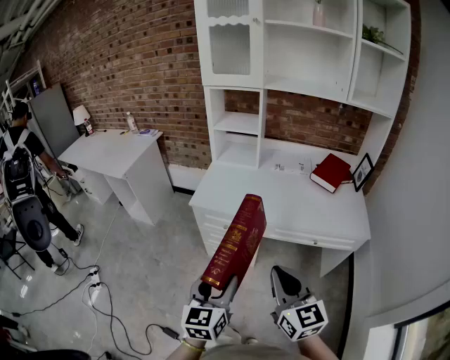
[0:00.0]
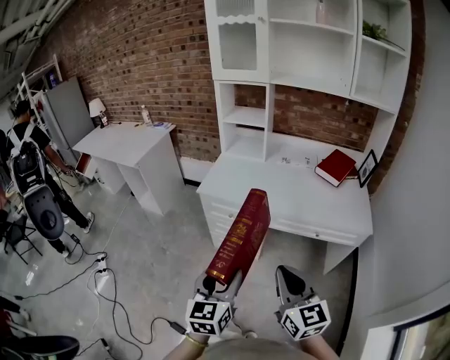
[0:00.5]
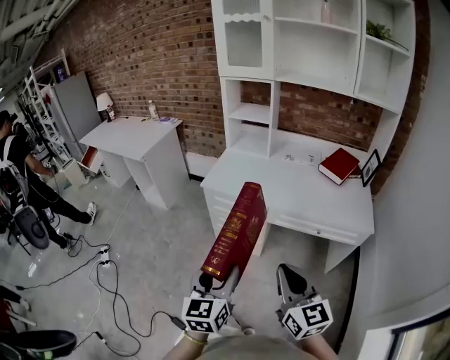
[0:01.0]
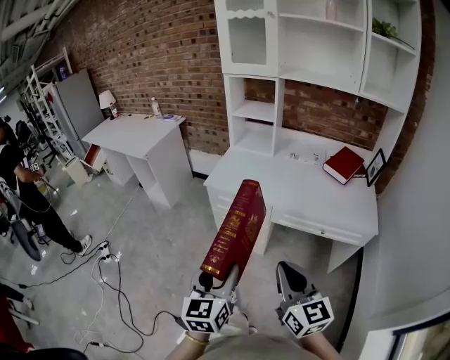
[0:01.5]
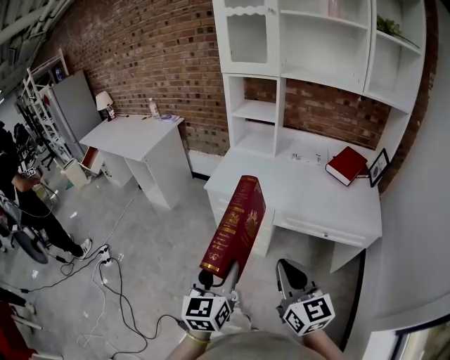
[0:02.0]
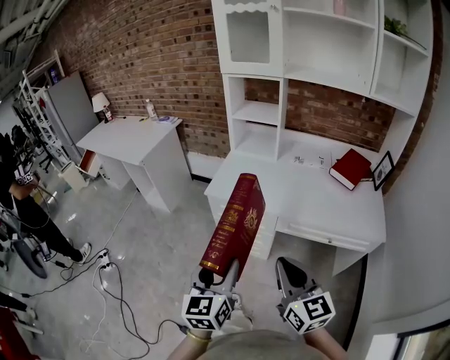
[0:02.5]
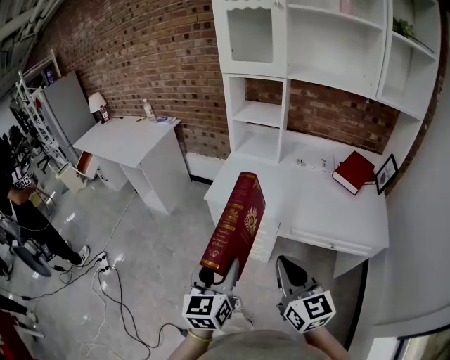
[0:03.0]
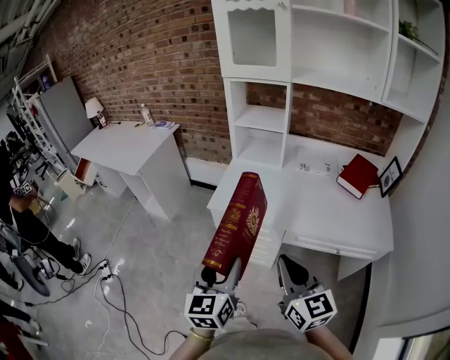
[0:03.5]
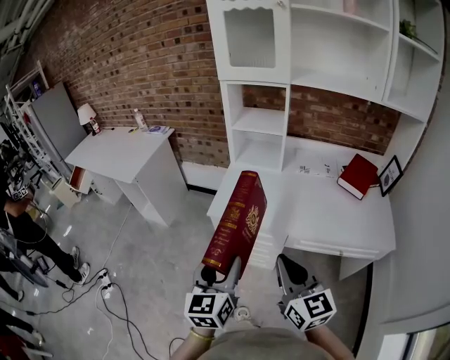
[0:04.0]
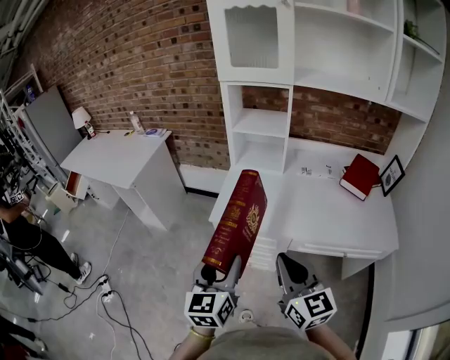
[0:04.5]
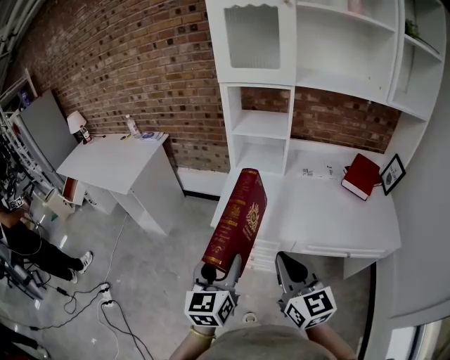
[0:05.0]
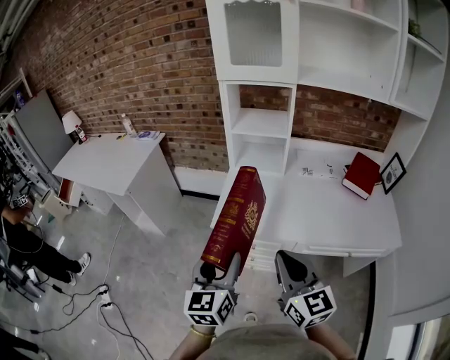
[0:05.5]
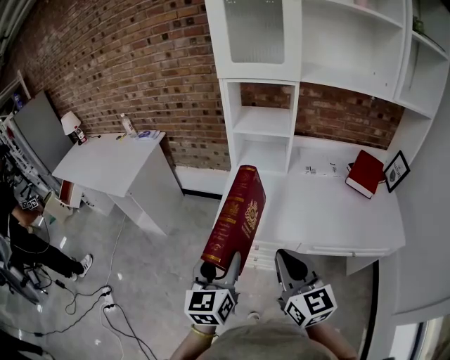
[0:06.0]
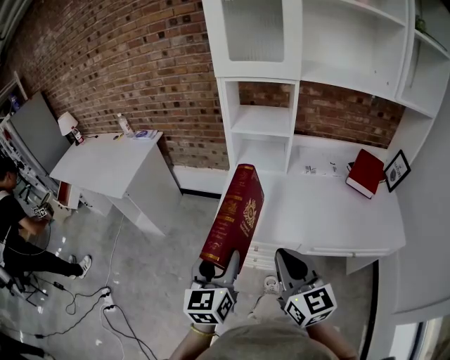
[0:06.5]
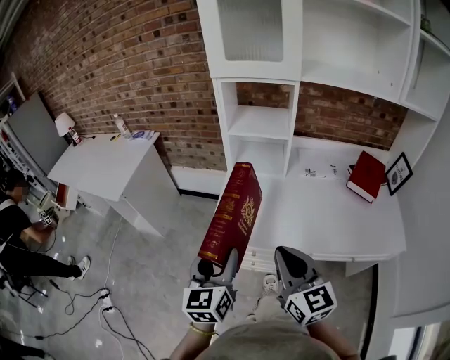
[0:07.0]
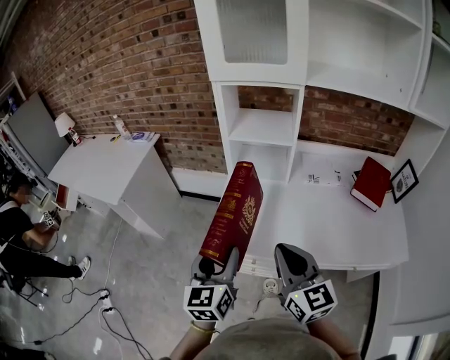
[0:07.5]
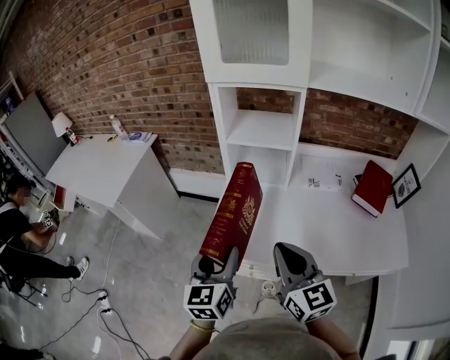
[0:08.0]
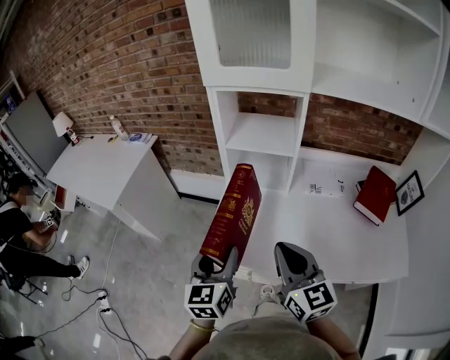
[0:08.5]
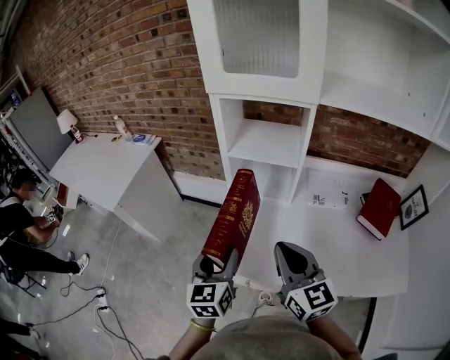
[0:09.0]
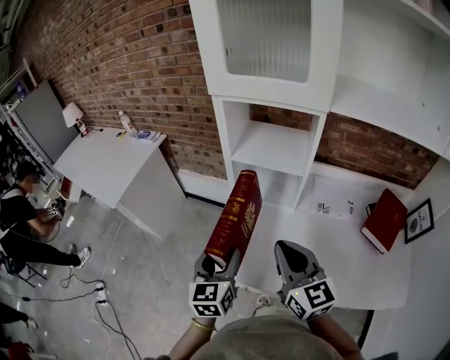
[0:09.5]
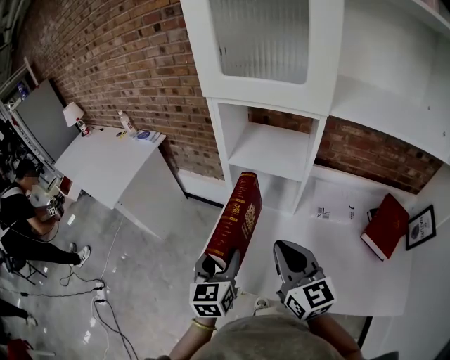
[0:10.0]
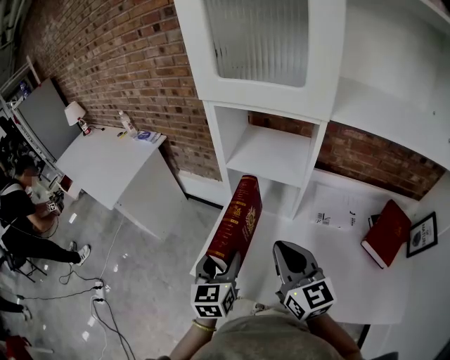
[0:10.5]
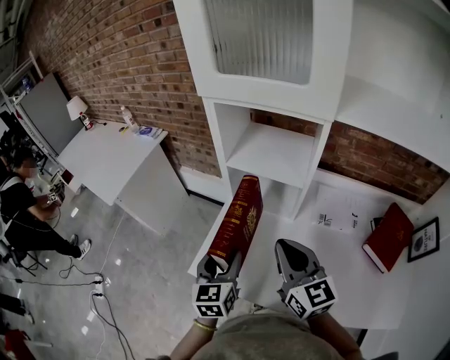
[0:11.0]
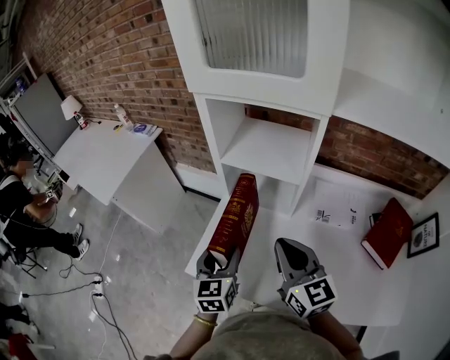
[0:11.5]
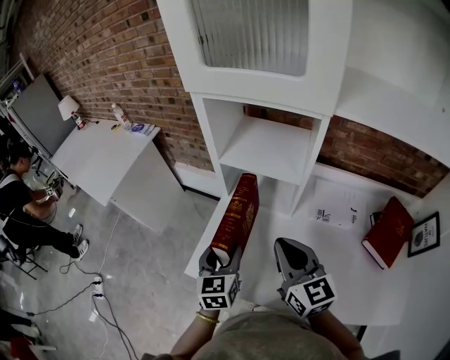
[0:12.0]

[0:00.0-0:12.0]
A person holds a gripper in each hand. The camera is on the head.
0:02.0 to 0:04.0: The grippers both shift forward by some 20 cm.
0:04.0 to 0:06.0: The right gripper heads forward and to the left, covering about 10 cm. The left gripper is displaced forward by roughly 10 cm.
0:06.0 to 0:08.0: Both grippers travel together forward, some 15 cm.
0:08.0 to 0:10.0: Both grippers travel together forward and to the right, approximately 15 cm.
0:10.0 to 0:12.0: The right gripper moves some 5 cm, while the left gripper travels downward by some 5 cm.

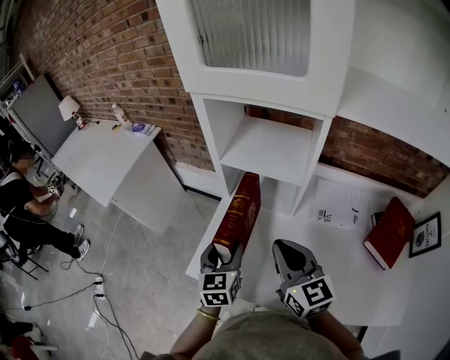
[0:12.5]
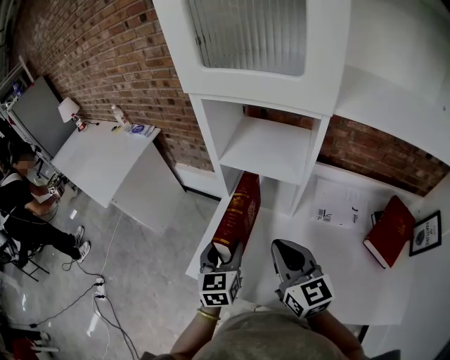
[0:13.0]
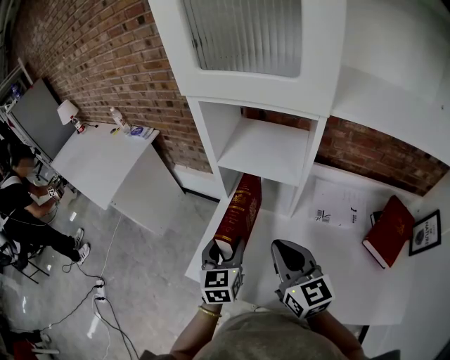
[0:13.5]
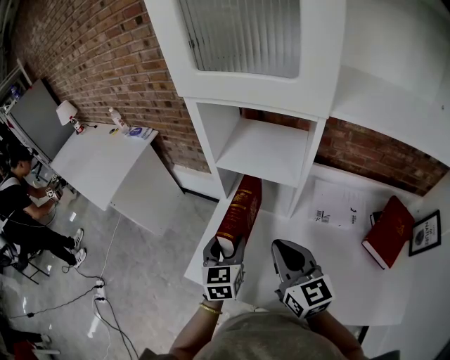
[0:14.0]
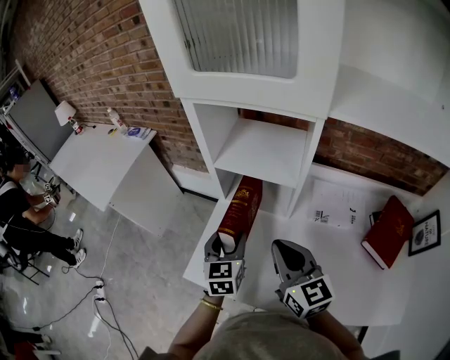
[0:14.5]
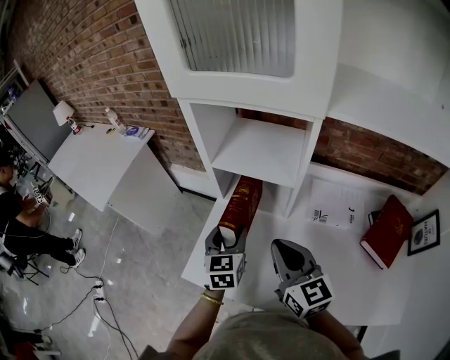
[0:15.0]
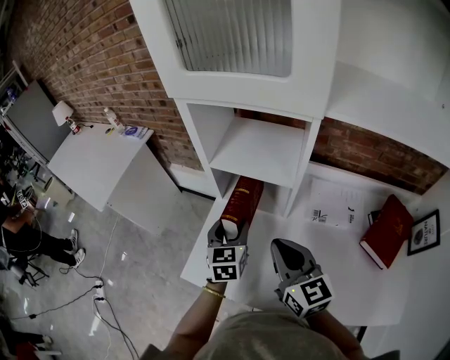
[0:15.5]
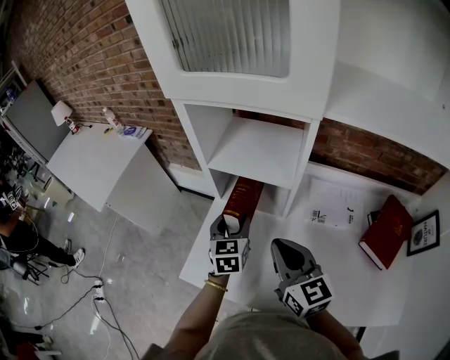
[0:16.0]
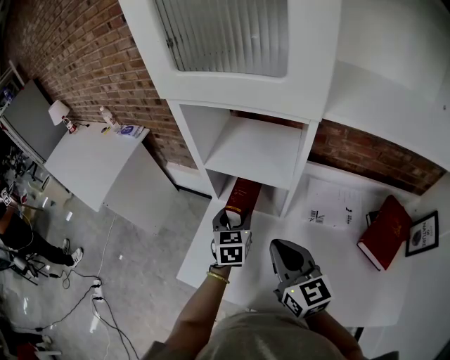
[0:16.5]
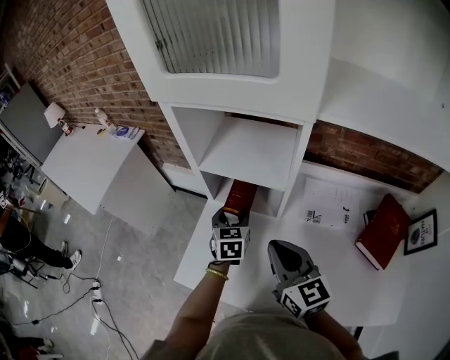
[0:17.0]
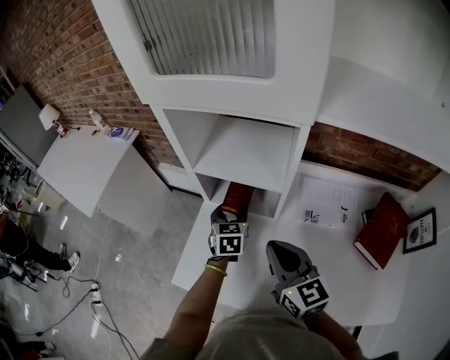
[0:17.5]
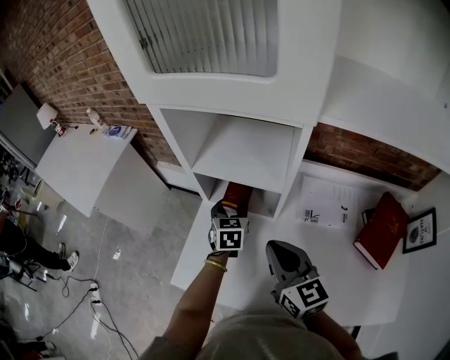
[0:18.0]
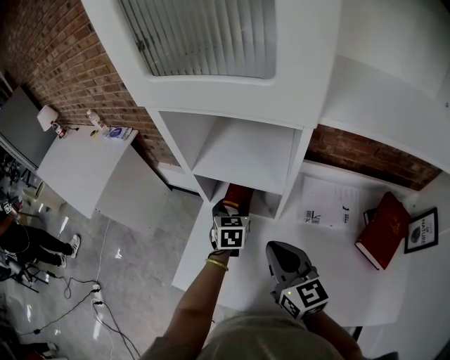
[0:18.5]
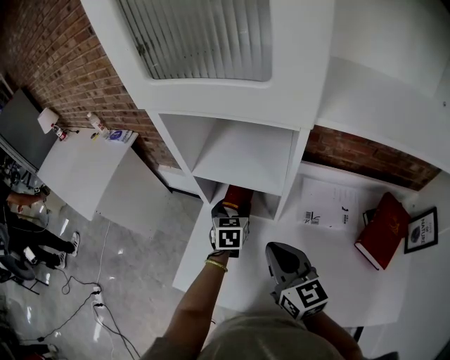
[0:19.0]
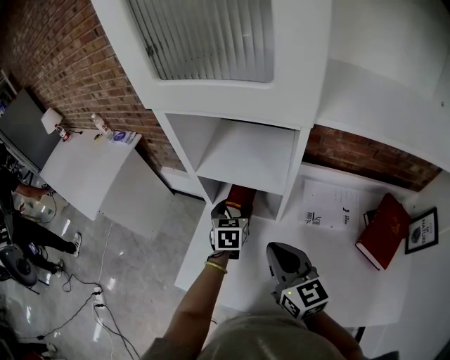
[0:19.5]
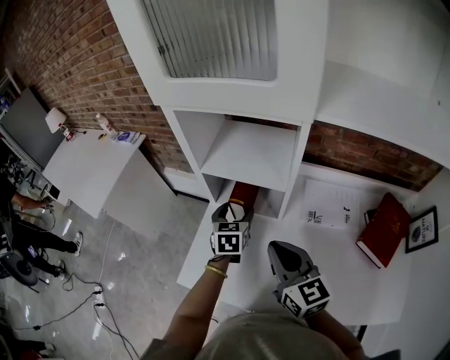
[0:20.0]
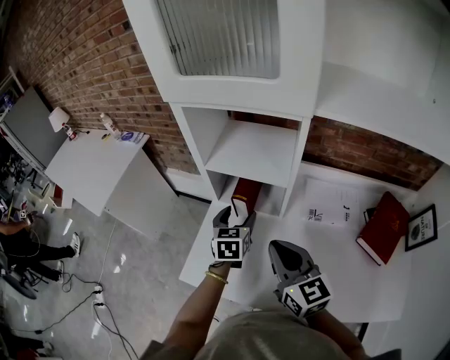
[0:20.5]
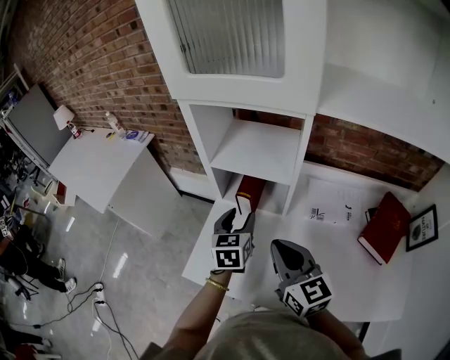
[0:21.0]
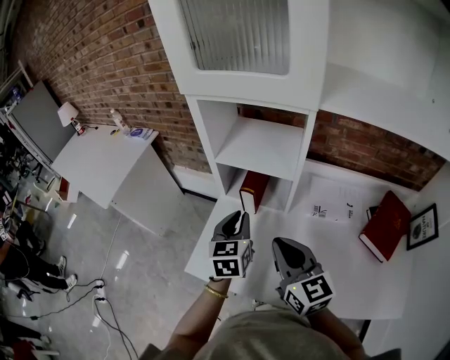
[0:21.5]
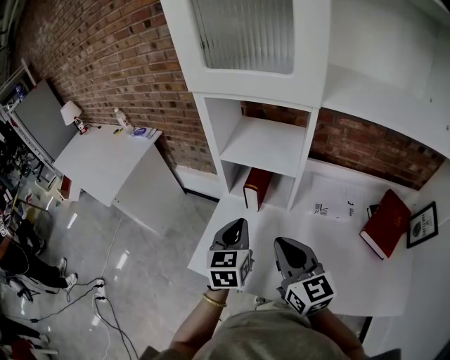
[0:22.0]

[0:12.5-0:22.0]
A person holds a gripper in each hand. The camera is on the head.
0:12.5 to 0:14.5: The grippers move only a little.
0:14.5 to 0:16.5: The left gripper moves forward and to the right, roughly 10 cm.
0:16.5 to 0:18.0: The left gripper ends up roughly 5 cm from where it was.
0:18.0 to 0:20.0: There are only small adjustments of the grippers.
0:20.0 to 0:22.0: The left gripper heads backward and upward, covering roughly 15 cm, and closes, while the right gripper heads backward, covering roughly 5 cm.

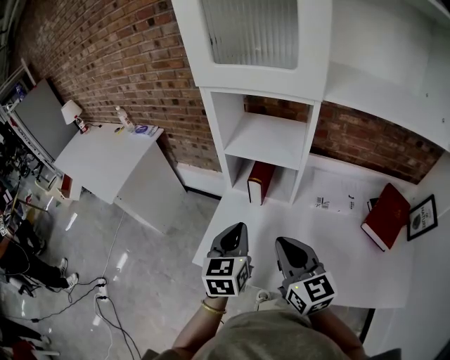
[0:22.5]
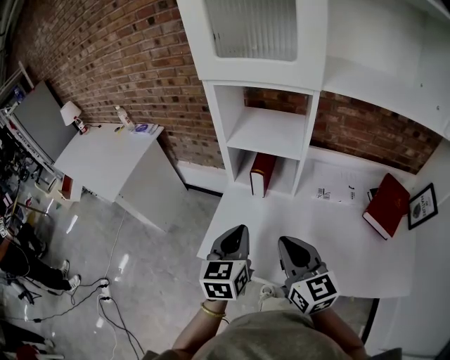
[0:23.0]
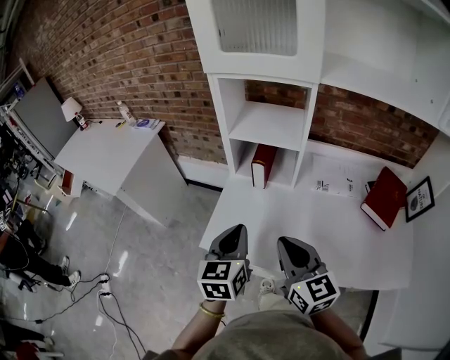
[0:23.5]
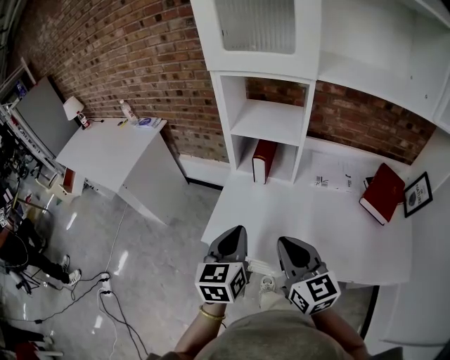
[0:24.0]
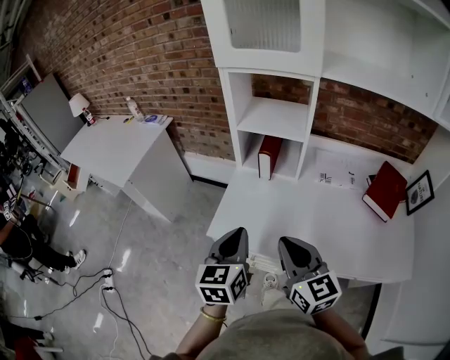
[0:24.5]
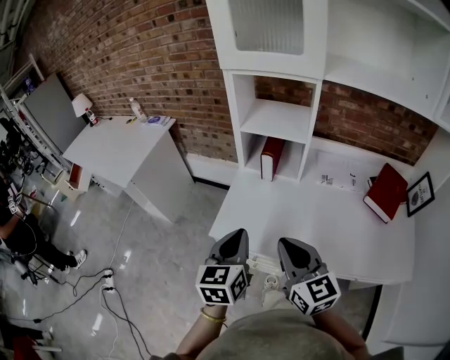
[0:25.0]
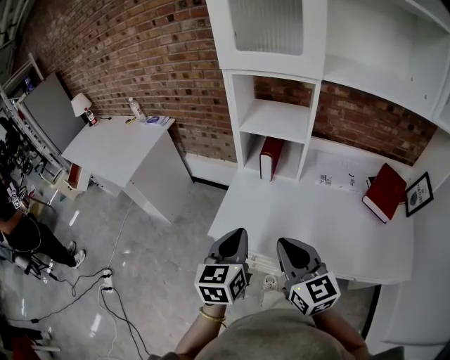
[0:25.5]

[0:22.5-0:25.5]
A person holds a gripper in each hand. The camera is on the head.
0:22.5 to 0:24.0: Both grippers move backward, about 10 cm.
0:24.0 to 0:25.5: The grippers move only a little.

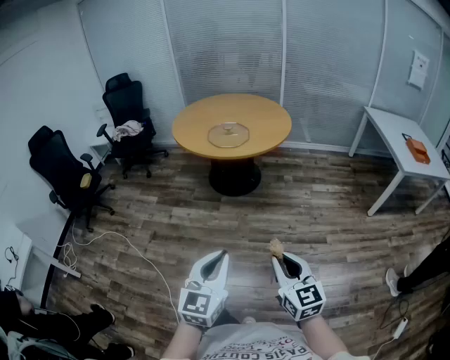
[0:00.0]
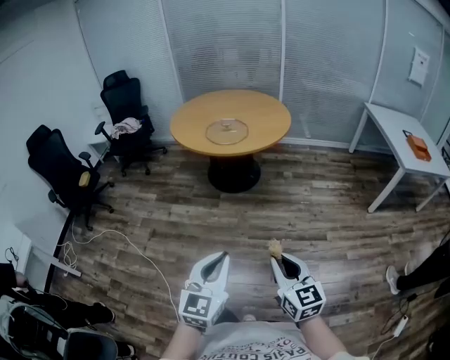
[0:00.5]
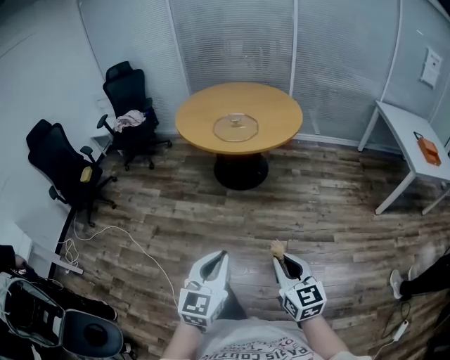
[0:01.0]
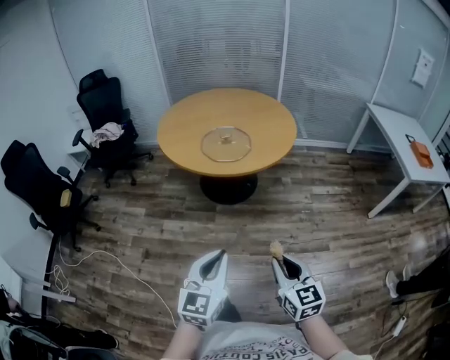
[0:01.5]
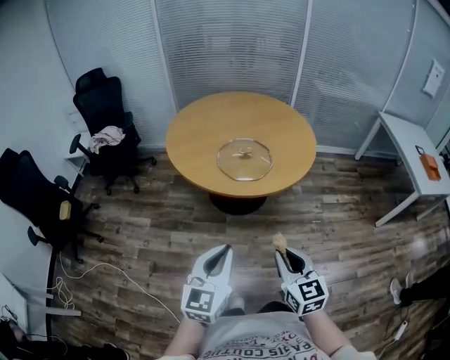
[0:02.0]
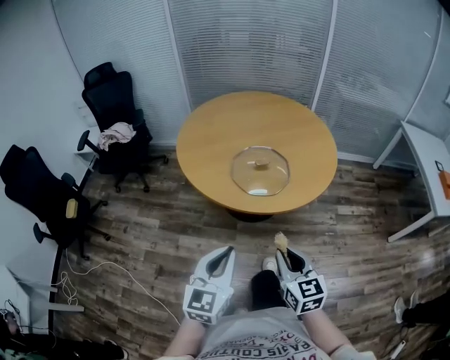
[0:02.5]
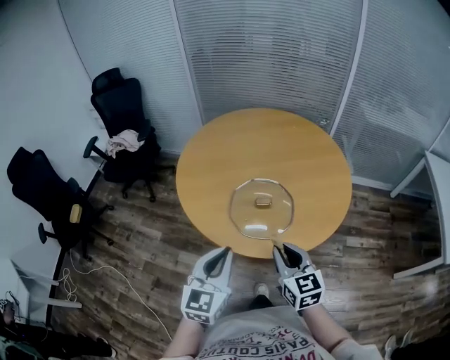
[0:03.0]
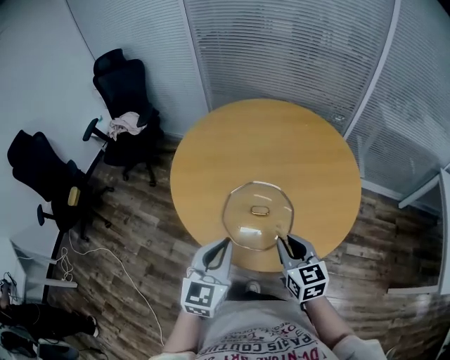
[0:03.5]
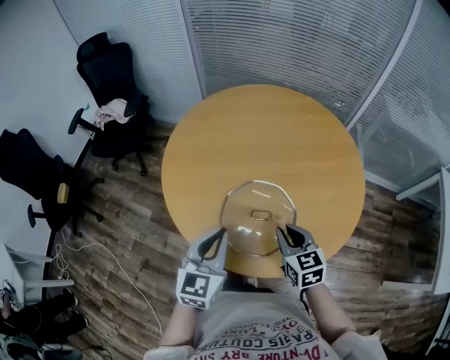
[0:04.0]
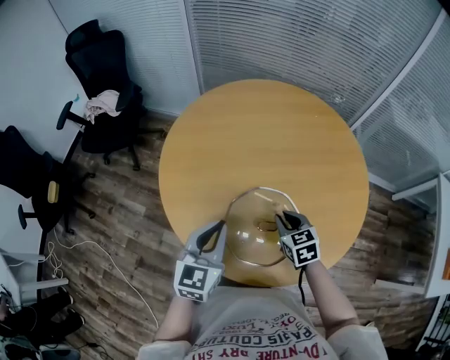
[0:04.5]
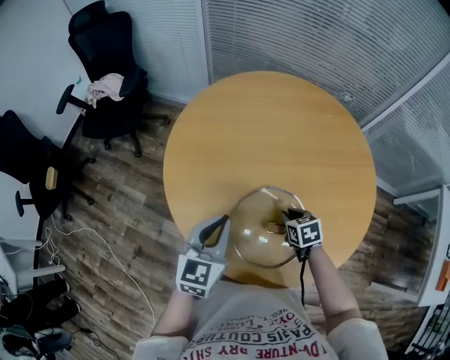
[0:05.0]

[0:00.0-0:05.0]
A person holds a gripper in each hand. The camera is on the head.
0:00.0 to 0:02.5: The pair of grippers is taken forward, roughly 60 cm.
0:02.5 to 0:05.0: The two grippers travel together, forward, roughly 50 cm. The right gripper travels downward by about 20 cm, and tilts its fingers roughly 40 degrees downward.
